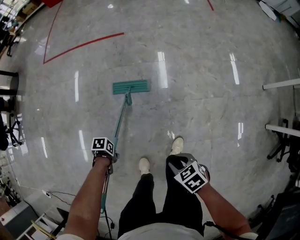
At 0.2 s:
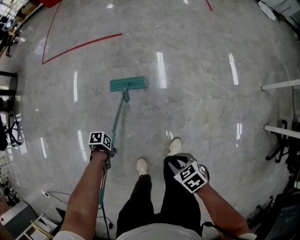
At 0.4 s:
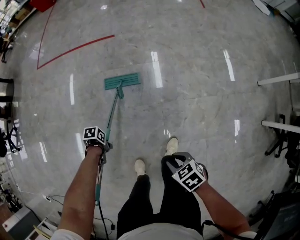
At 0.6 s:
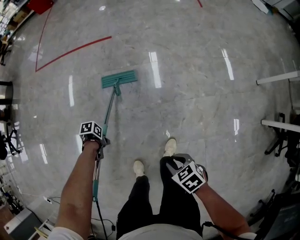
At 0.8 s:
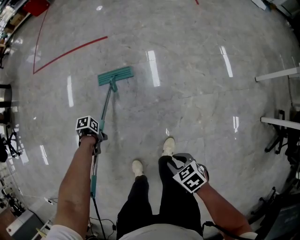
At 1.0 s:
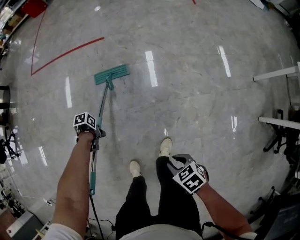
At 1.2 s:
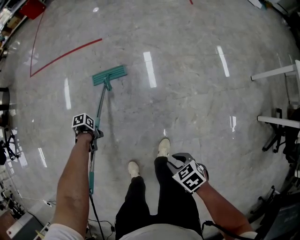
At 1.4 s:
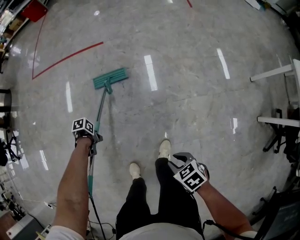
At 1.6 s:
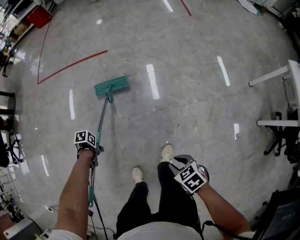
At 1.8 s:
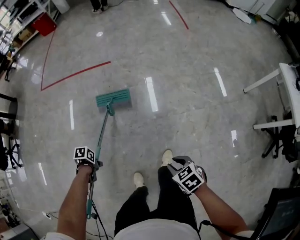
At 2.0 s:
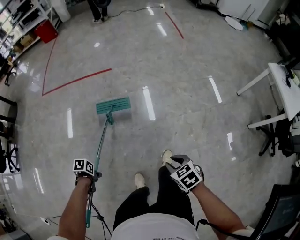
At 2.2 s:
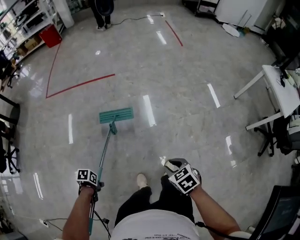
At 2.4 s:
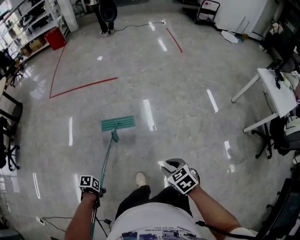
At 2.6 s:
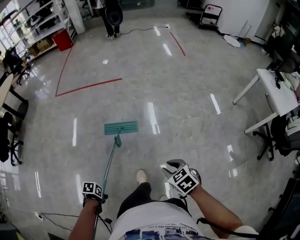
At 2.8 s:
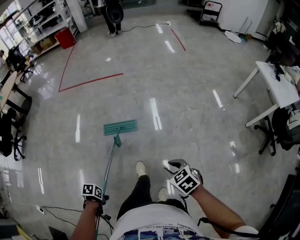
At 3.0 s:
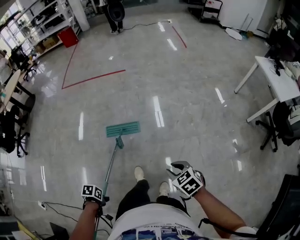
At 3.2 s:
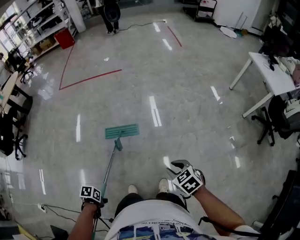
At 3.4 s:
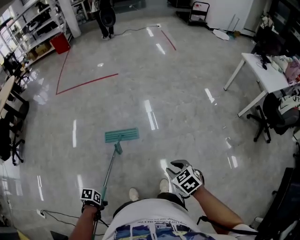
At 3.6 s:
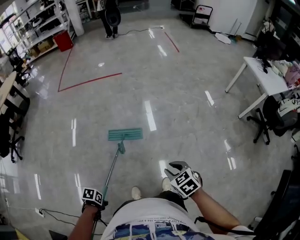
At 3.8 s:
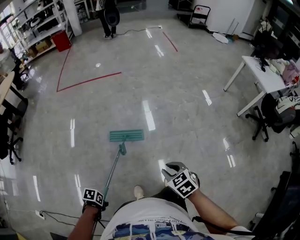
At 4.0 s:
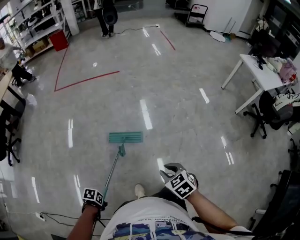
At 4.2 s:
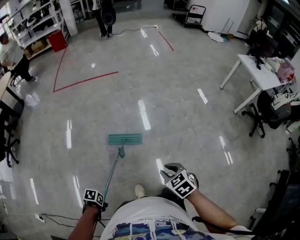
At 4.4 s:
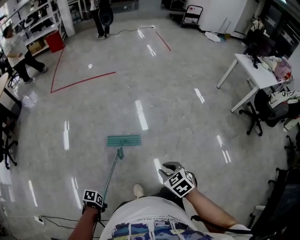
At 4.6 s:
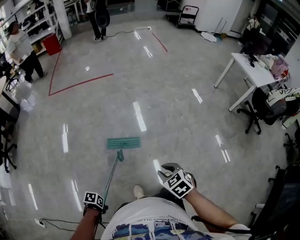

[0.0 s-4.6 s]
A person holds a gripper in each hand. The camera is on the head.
0.0 to 1.6 s: The right gripper changes place by about 10 cm.
1.6 to 3.0 s: The right gripper shifts by approximately 30 cm.
3.0 to 4.6 s: The right gripper changes place by about 15 cm.

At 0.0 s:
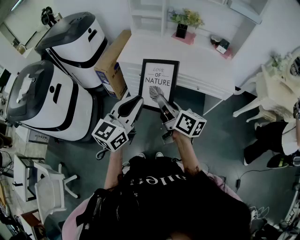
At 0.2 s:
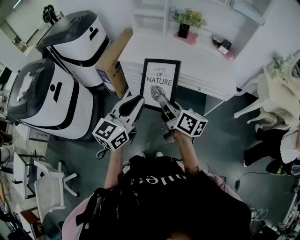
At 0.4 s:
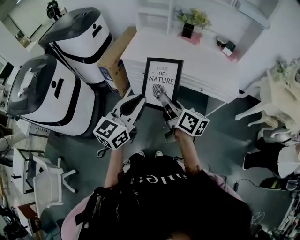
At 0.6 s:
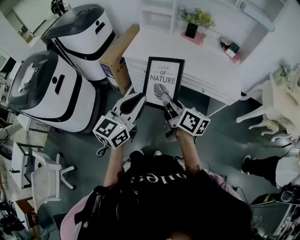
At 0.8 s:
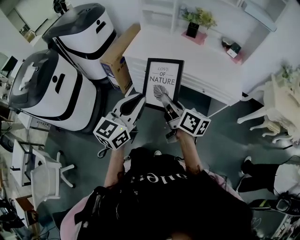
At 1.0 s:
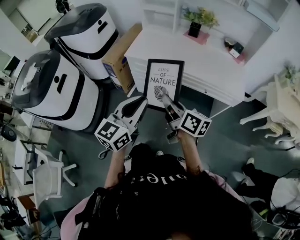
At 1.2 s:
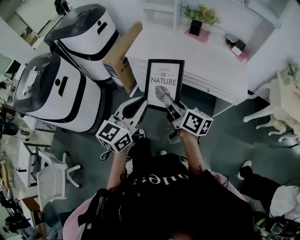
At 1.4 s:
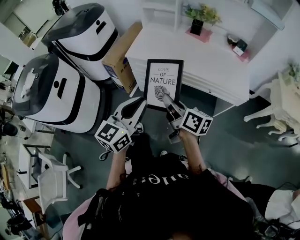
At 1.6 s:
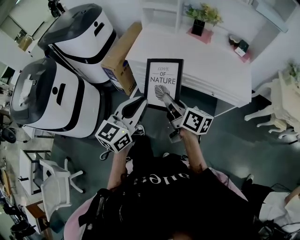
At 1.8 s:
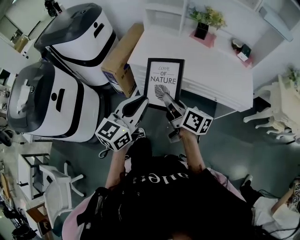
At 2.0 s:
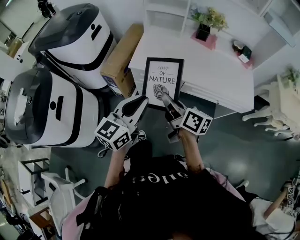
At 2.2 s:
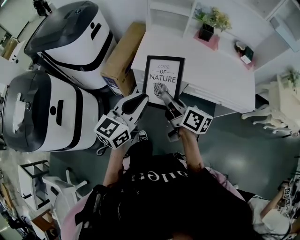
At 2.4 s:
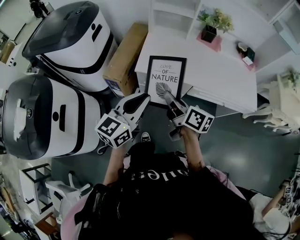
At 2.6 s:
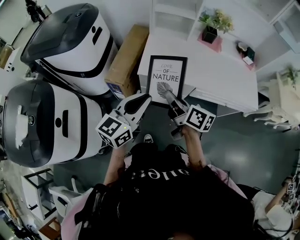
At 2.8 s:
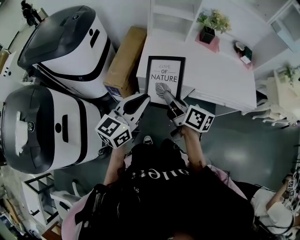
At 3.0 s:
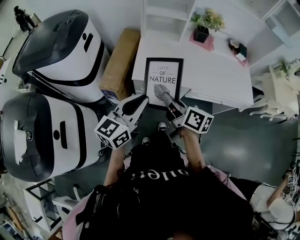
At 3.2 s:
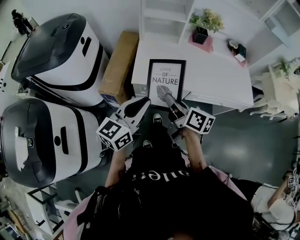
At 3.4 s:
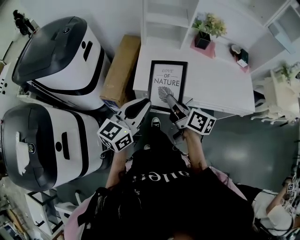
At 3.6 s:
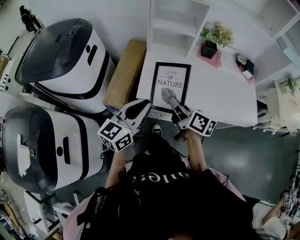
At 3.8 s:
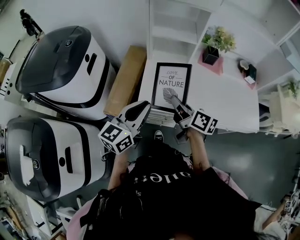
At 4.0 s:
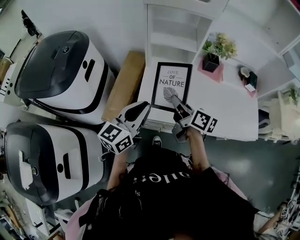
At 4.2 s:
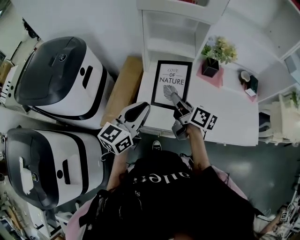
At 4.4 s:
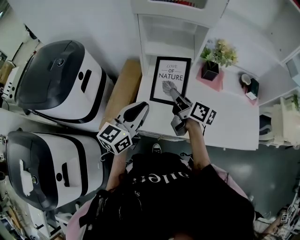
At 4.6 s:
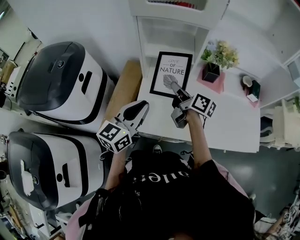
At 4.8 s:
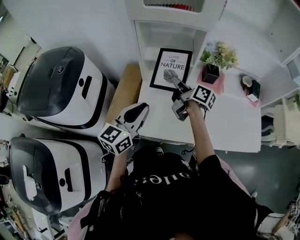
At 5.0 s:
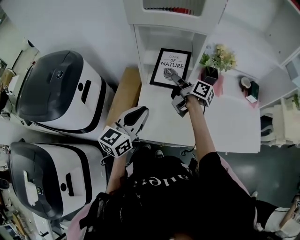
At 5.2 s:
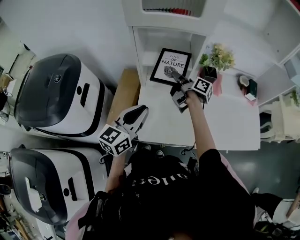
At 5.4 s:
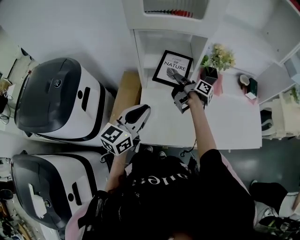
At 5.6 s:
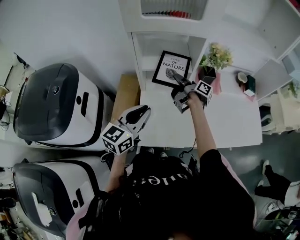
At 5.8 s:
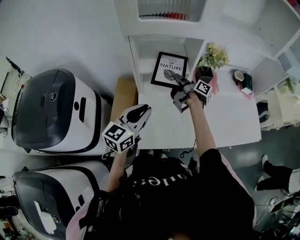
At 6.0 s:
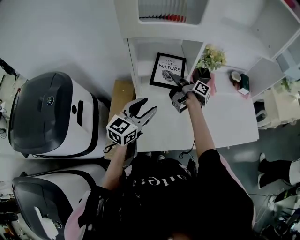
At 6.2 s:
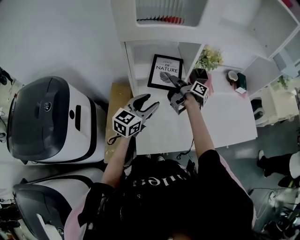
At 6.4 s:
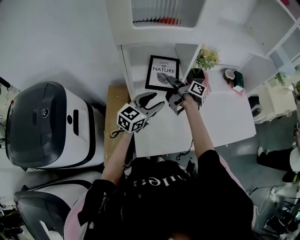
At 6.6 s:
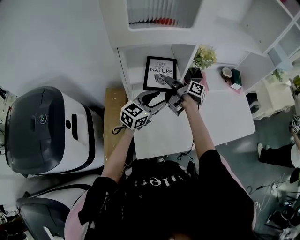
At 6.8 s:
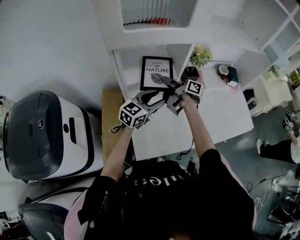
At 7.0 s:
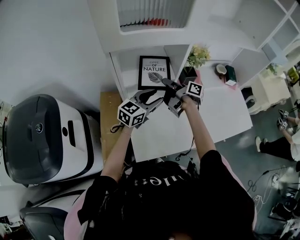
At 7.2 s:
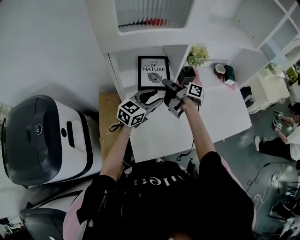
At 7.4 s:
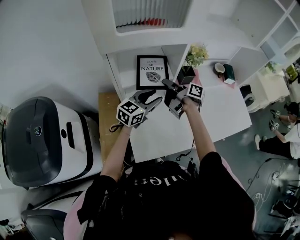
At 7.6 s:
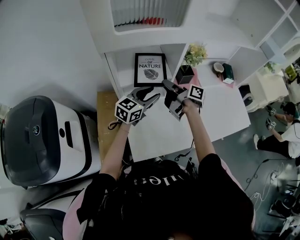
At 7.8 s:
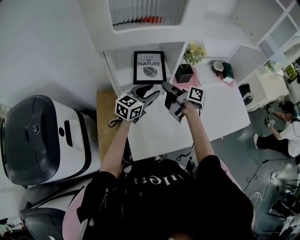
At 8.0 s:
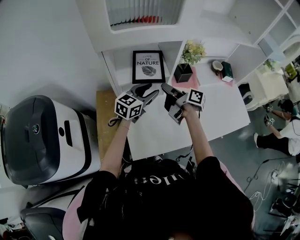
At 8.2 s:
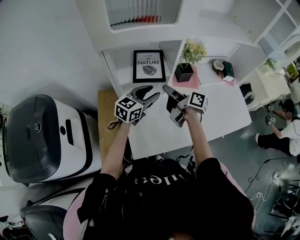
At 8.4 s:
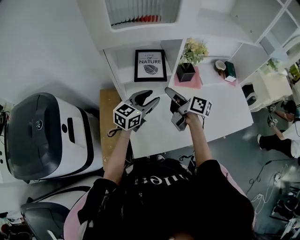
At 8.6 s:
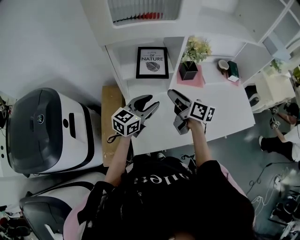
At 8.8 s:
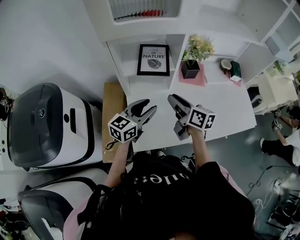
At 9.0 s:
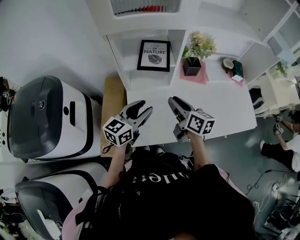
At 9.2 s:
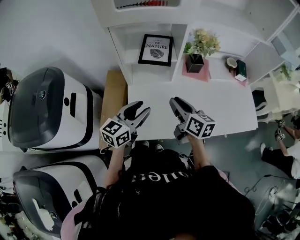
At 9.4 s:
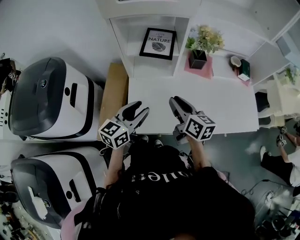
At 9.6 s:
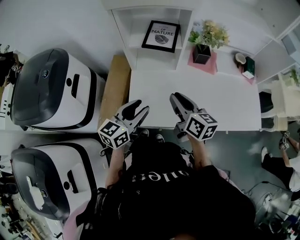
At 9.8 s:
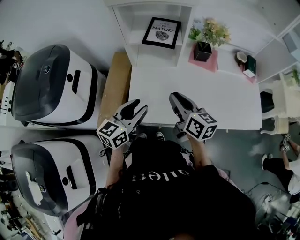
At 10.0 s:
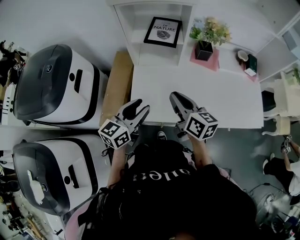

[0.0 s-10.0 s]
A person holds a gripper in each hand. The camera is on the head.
0.0 to 1.4 s: Both grippers travel together forward, approximately 5 cm.
1.4 to 2.8 s: The left gripper travels forward and to the left by approximately 35 cm. Meanwhile the right gripper is displaced to the left and forward by roughly 30 cm.
2.8 to 4.2 s: The two grippers go about 30 cm forward.
4.2 to 5.8 s: The left gripper moves forward, about 15 cm. The right gripper travels forward by about 25 cm, and rotates about 40 degrees.
5.8 to 7.2 s: The left gripper heads forward and to the right, covering roughly 15 cm, turns by roughly 20 degrees, and opens up.
7.2 to 8.6 s: The left gripper travels backward by approximately 5 cm. The right gripper goes some 10 cm backward, and rotates some 30 degrees.
8.6 to 10.0 s: Both grippers travel together backward, roughly 15 cm. The left gripper turns by about 20 degrees.

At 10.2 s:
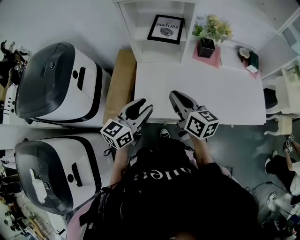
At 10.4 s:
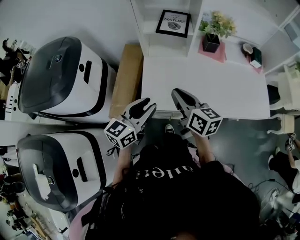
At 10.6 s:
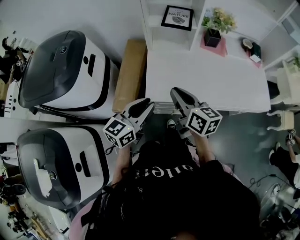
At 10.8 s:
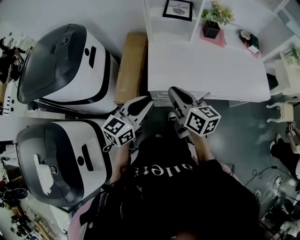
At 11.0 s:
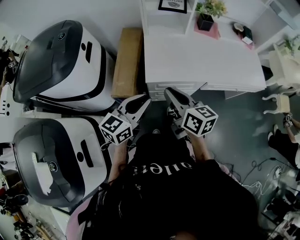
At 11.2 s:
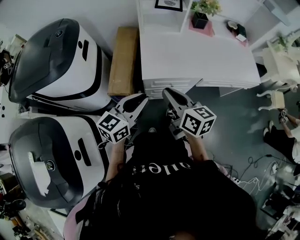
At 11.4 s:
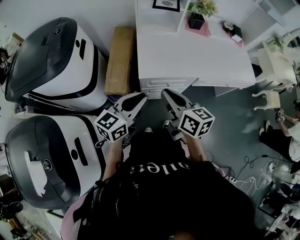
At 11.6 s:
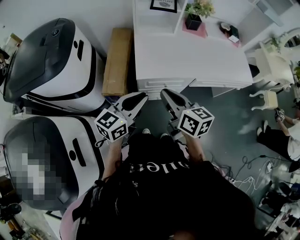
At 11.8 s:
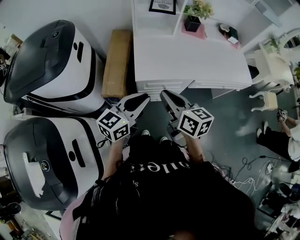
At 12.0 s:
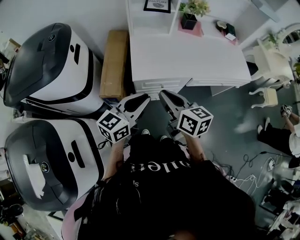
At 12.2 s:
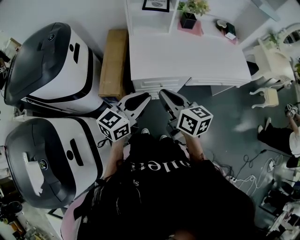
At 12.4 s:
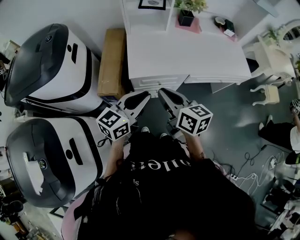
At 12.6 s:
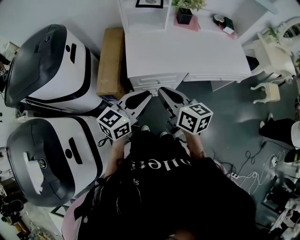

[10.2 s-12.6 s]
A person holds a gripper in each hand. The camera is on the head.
10.2 to 11.4 s: The left gripper moves backward, about 20 cm, and closes up, while the right gripper moves backward and to the left, about 25 cm.
11.4 to 12.6 s: Both grippers move to the right, about 10 cm.

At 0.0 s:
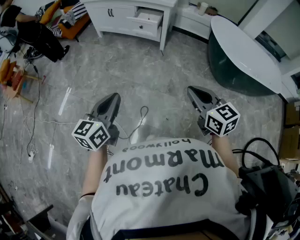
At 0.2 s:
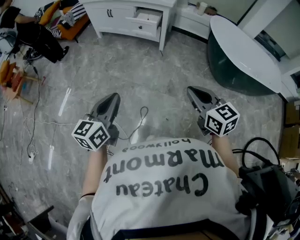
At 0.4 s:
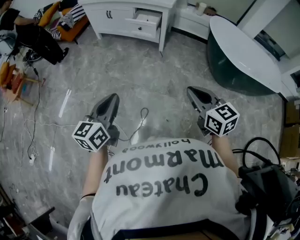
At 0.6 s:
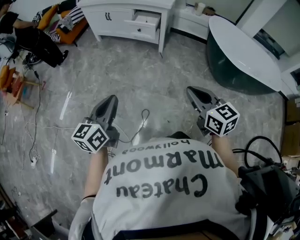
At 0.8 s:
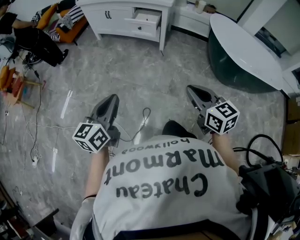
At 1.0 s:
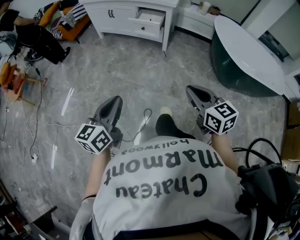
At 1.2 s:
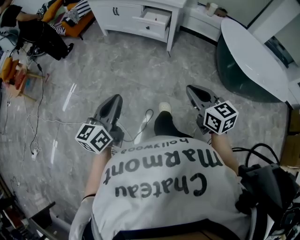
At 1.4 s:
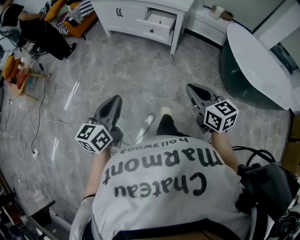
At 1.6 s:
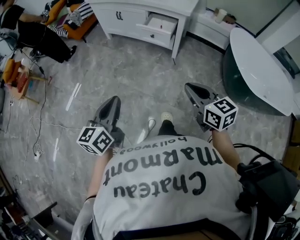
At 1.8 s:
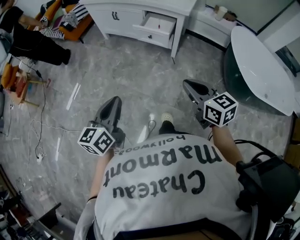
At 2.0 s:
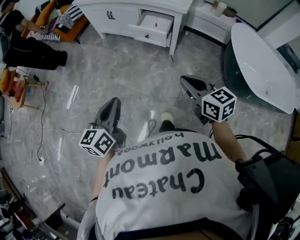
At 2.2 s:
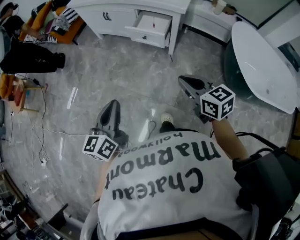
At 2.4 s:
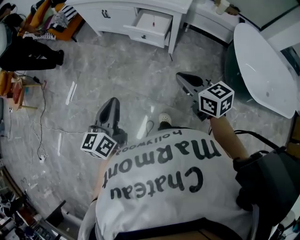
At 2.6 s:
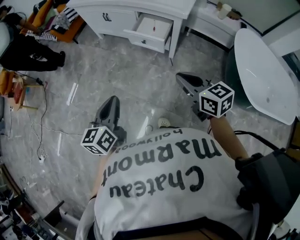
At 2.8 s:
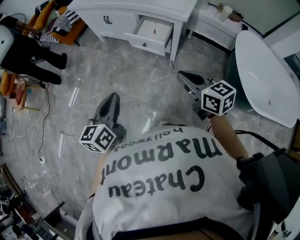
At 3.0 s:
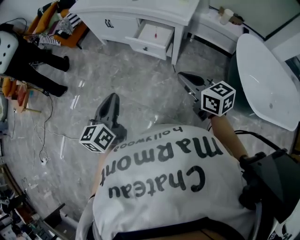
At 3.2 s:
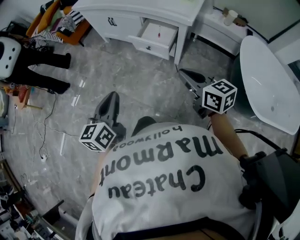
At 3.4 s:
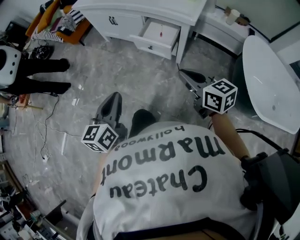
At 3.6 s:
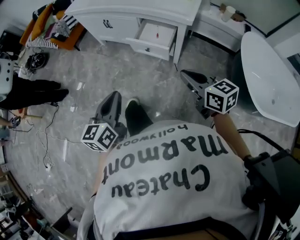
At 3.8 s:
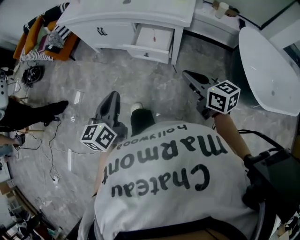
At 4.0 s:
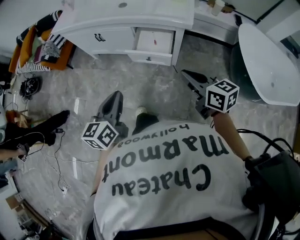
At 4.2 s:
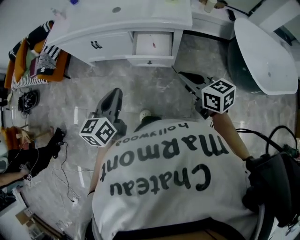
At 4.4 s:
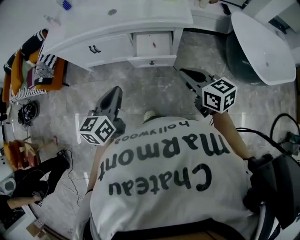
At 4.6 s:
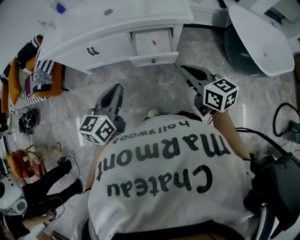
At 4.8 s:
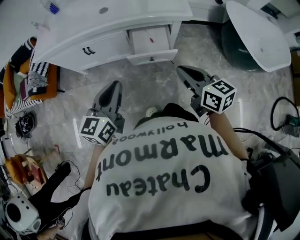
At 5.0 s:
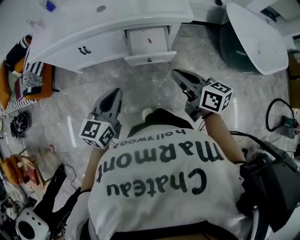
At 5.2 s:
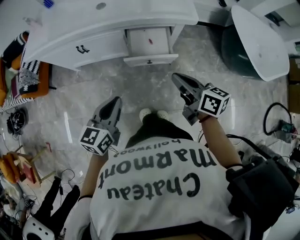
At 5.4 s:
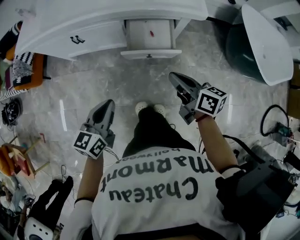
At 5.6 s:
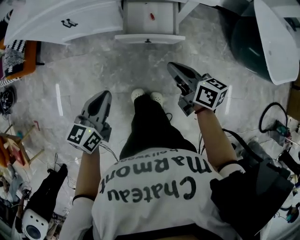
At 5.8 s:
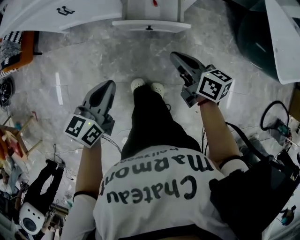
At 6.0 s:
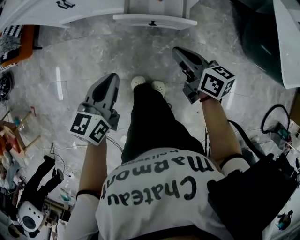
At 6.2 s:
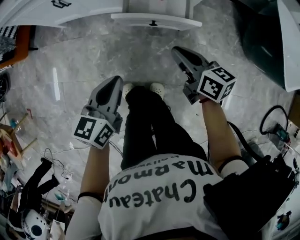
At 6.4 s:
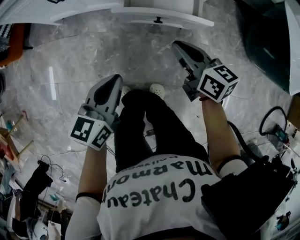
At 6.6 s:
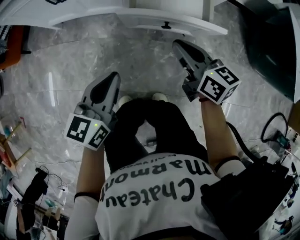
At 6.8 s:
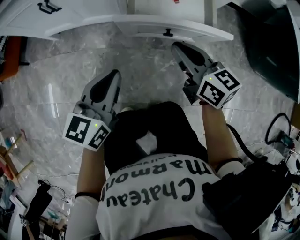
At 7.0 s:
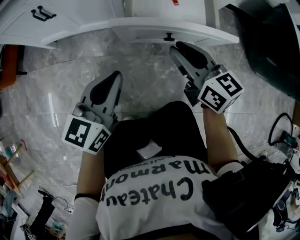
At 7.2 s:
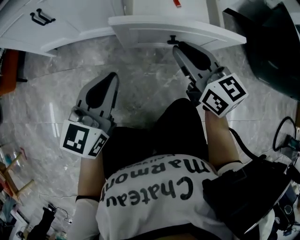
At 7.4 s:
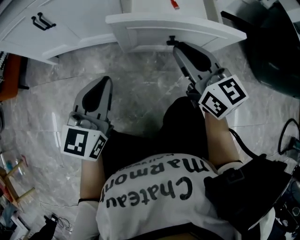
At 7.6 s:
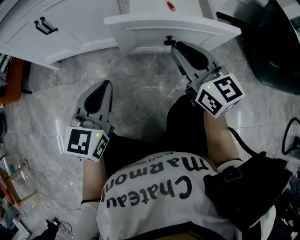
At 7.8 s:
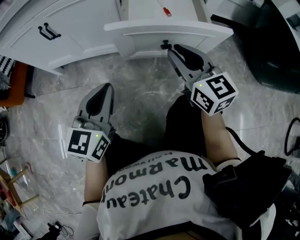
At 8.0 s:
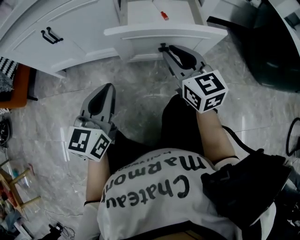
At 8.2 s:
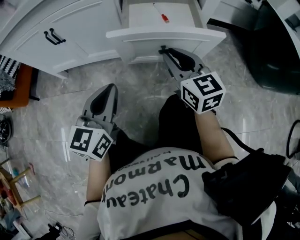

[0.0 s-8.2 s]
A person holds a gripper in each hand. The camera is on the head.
0.0 to 1.6 s: Both grippers move forward, approximately 20 cm.
1.6 to 3.2 s: The right gripper heads forward, covering some 25 cm, while the left gripper shifts roughly 25 cm forward and to the right.
3.2 to 5.0 s: The left gripper moves roughly 30 cm, and swivels some 50 degrees, while the right gripper moves approximately 20 cm, and changes its angle by some 40 degrees.
5.0 to 6.6 s: Both grippers move downward, roughly 30 cm.
6.6 to 8.2 s: The left gripper goes about 10 cm downward and forward. The right gripper shifts about 5 cm forward and downward, and turns by about 30 degrees.
